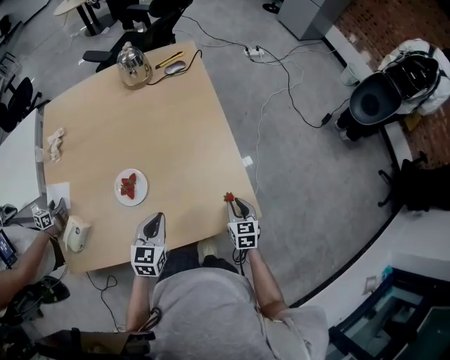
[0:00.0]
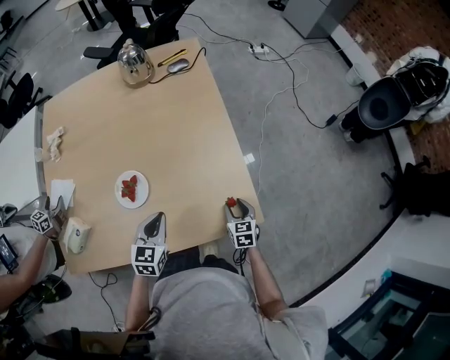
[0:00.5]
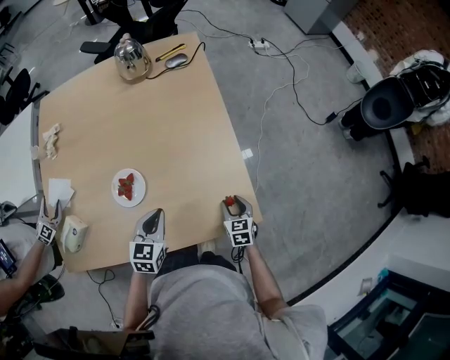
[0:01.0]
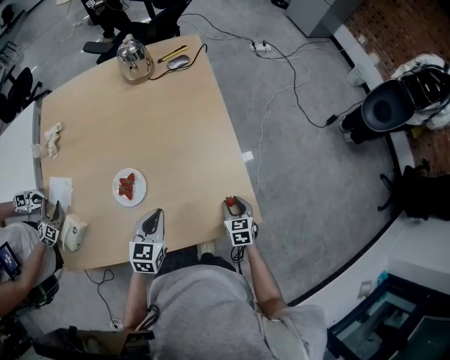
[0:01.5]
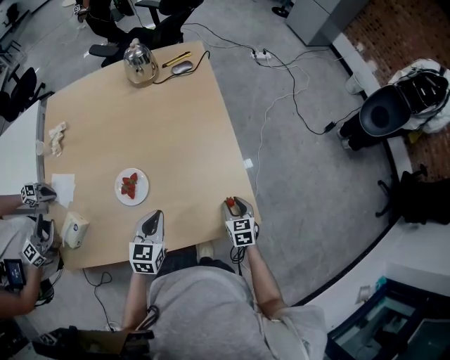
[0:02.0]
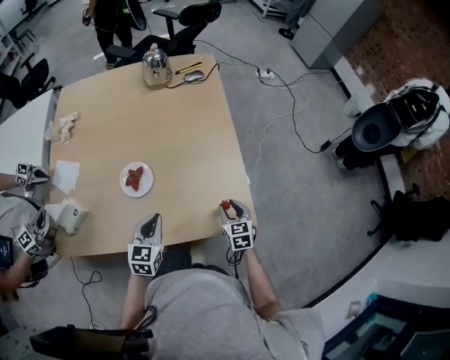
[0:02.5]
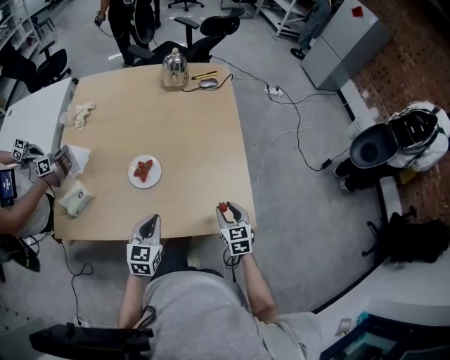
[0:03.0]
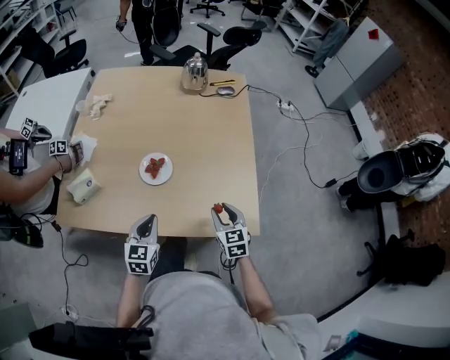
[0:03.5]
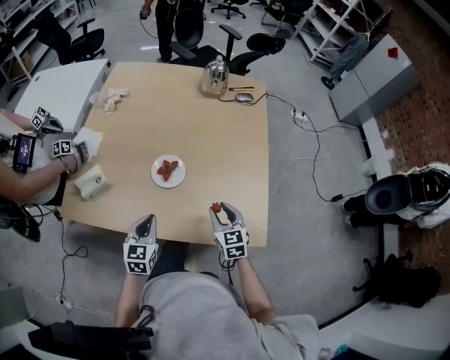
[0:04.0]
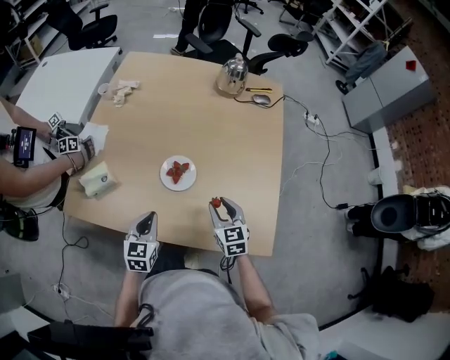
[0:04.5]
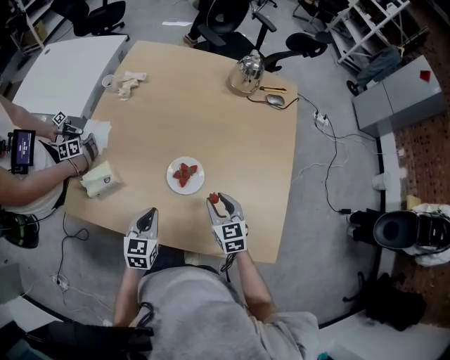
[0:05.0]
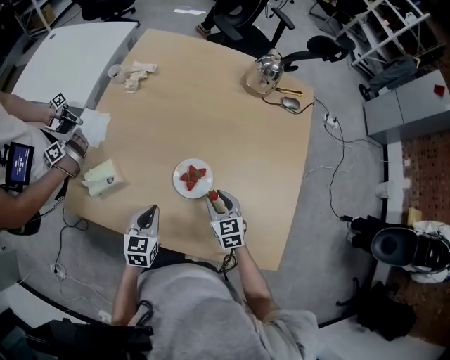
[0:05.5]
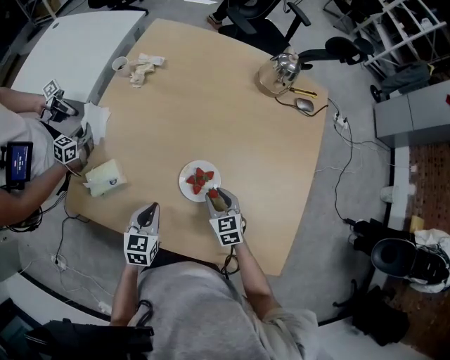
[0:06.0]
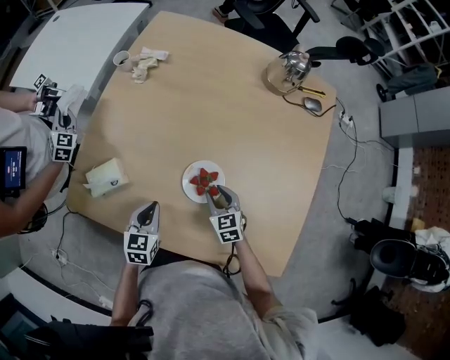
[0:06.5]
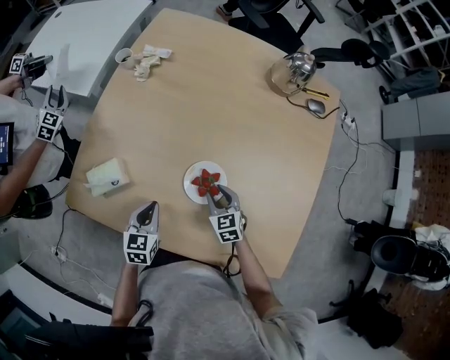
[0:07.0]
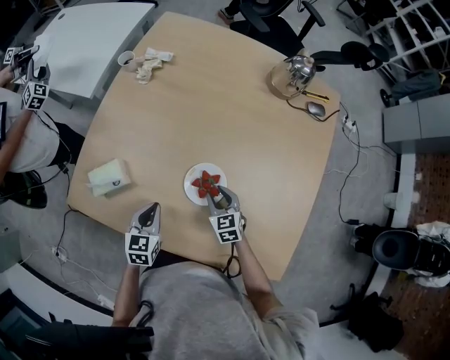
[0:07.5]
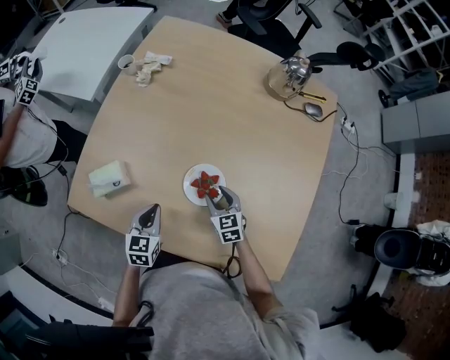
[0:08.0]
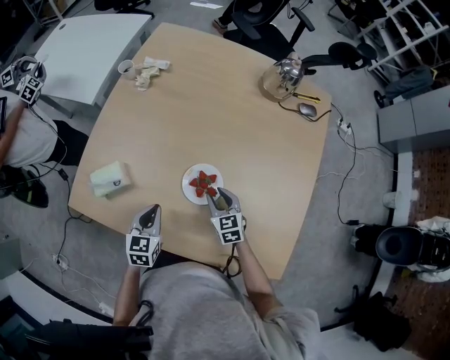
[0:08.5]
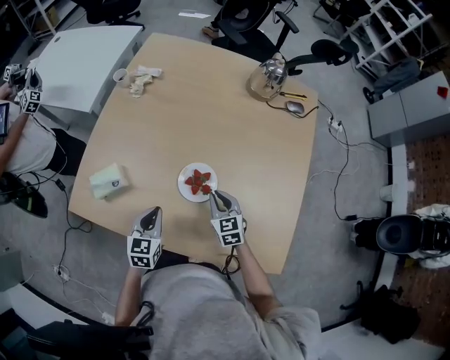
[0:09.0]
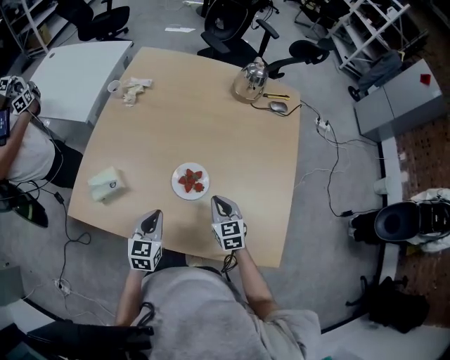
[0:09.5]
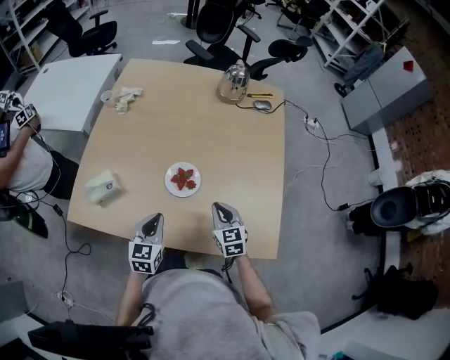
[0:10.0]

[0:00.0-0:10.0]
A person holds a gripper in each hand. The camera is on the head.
0:00.0 to 0:02.0: There are only small adjustments of the grippers.
0:02.0 to 0:04.0: The left gripper moves to the left and backward, approximately 15 cm, and swivels roughly 20 degrees. Meanwhile the right gripper is displaced to the left and upward by roughly 20 cm, and rotates approximately 30 degrees.
0:04.0 to 0:06.0: The grippers both shift forward, to the left and downward by roughly 20 cm.
0:06.0 to 0:08.0: The grippers stay close to where they were, moving slightly.
0:08.0 to 0:10.0: The two grippers go some 15 cm backward, upward and to the right. The right gripper closes its fingers.

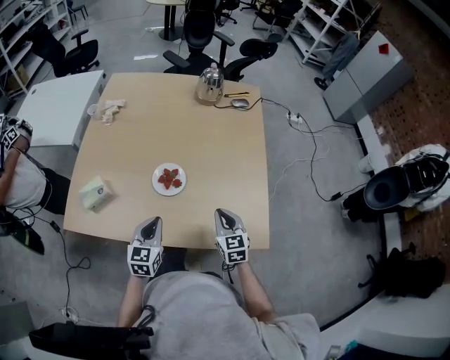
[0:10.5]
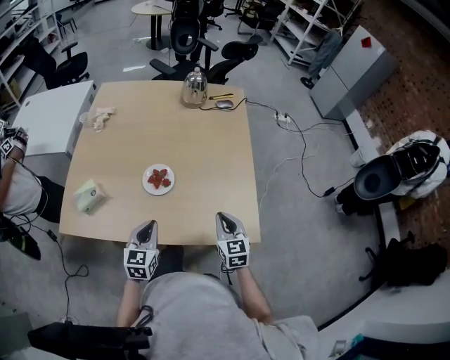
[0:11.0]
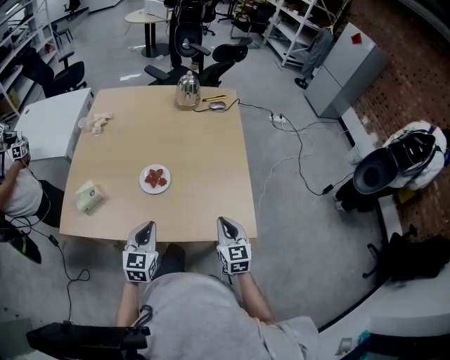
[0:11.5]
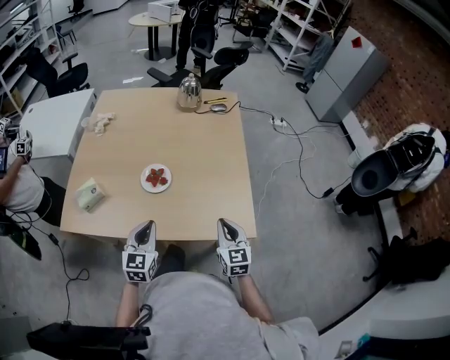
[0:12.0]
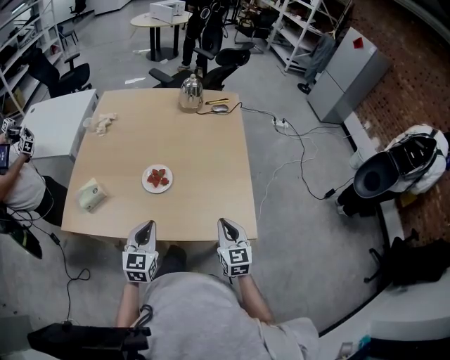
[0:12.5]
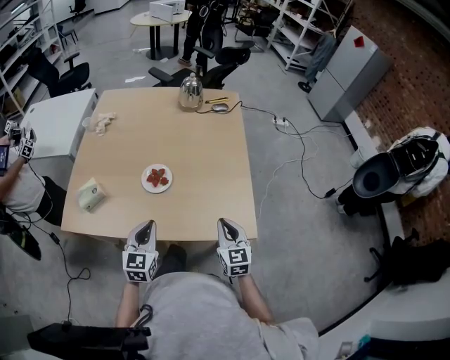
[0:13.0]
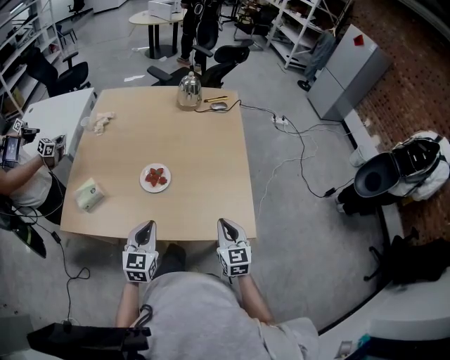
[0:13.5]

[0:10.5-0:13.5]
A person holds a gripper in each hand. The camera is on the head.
0:10.5 to 0:12.0: The right gripper shifts some 10 cm backward and to the right. The left gripper goes some 5 cm backward.
0:12.0 to 0:13.5: The two grippers keep their place.

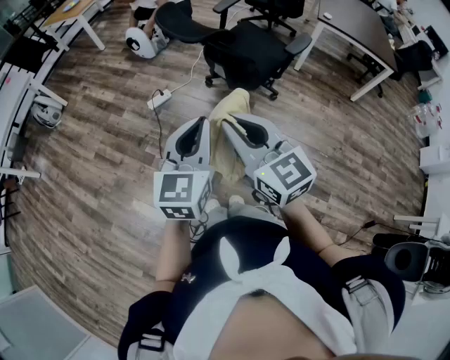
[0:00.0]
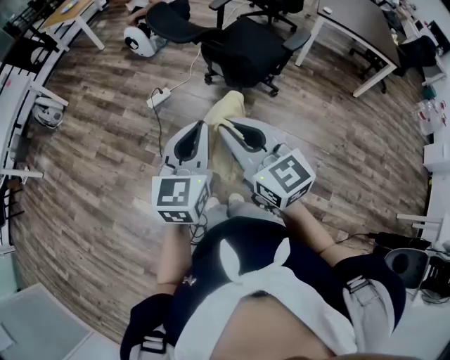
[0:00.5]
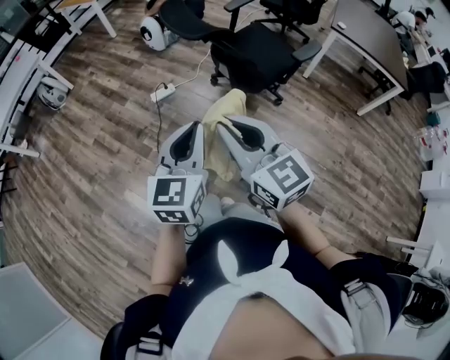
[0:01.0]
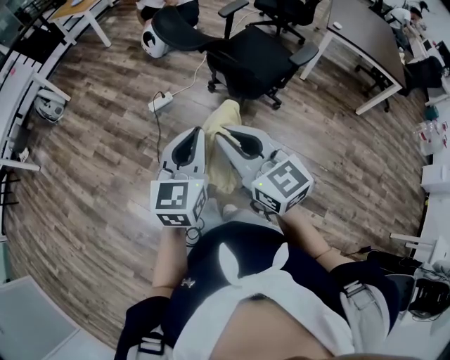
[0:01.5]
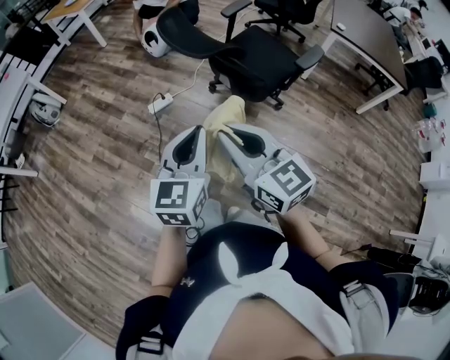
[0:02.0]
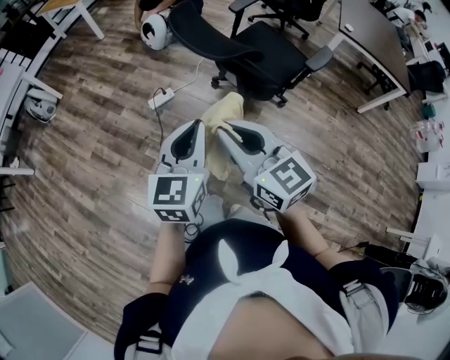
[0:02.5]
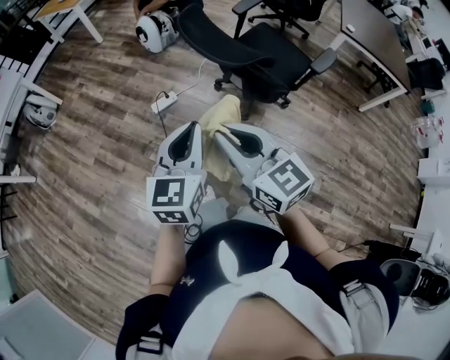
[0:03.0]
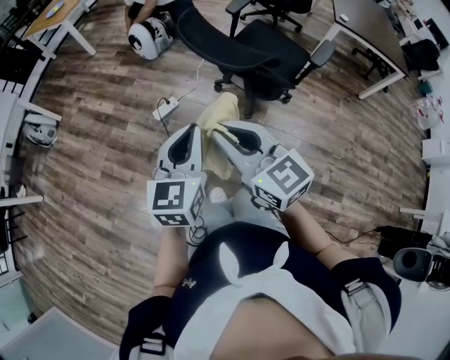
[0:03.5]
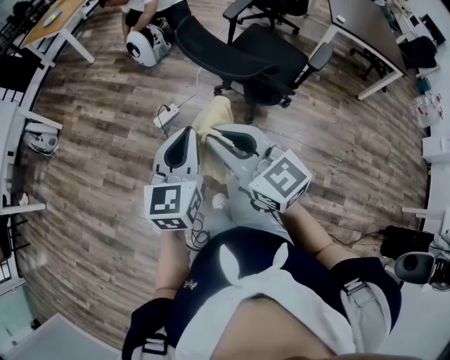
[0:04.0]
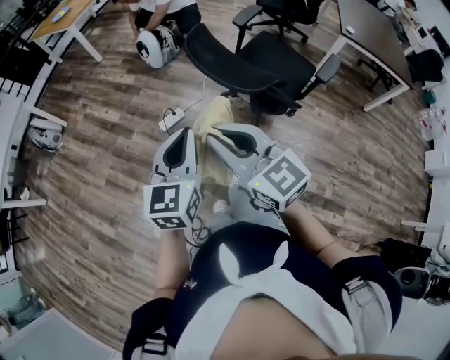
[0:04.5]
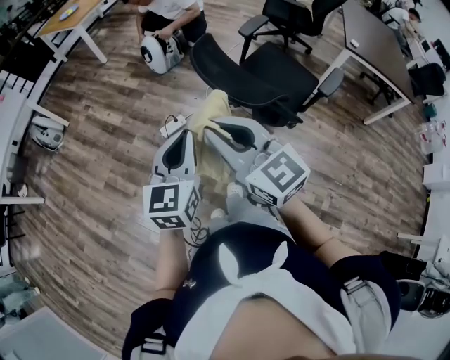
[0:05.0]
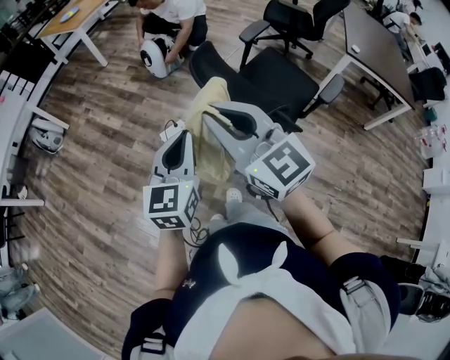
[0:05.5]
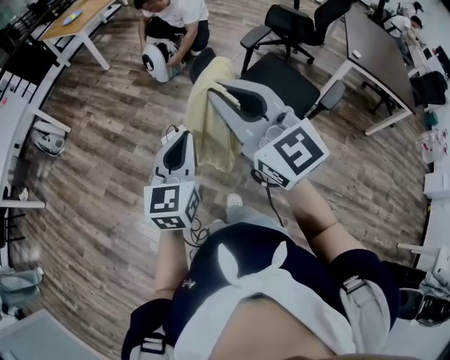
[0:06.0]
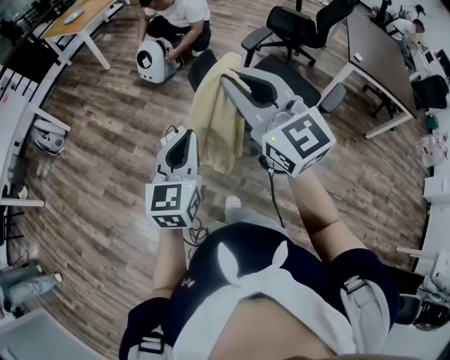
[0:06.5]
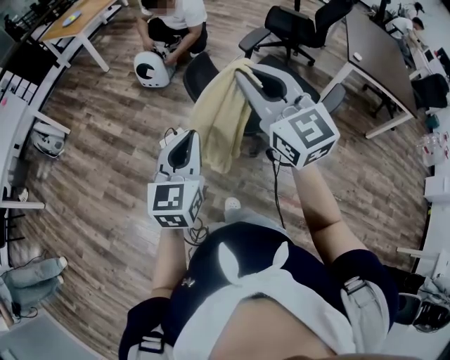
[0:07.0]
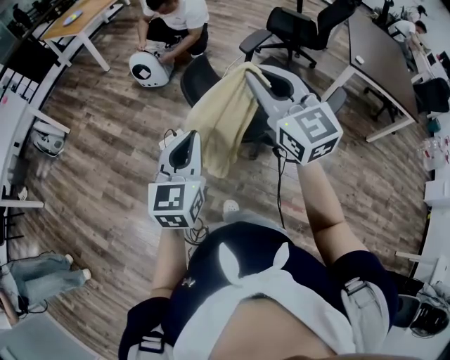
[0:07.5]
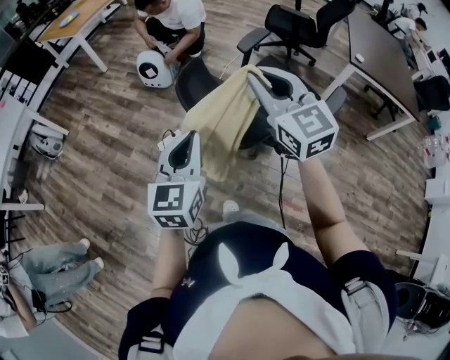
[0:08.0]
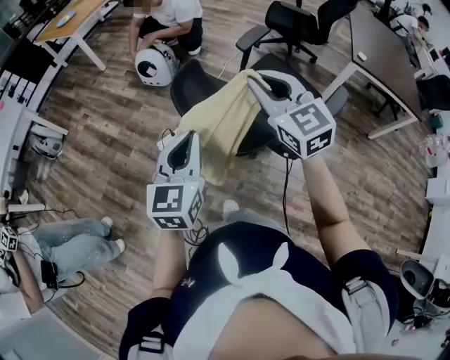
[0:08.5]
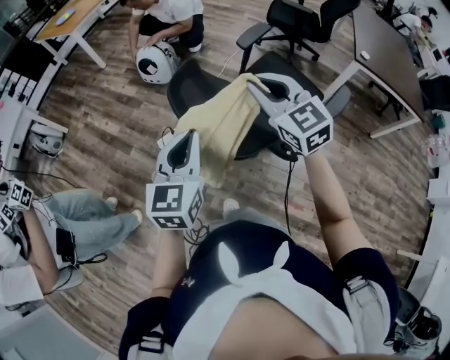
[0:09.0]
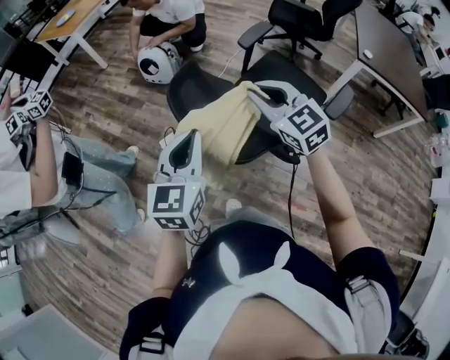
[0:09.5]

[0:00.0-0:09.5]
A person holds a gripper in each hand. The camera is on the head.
0:00.0 to 0:02.0: The two grippers go some 10 cm forward.
0:02.0 to 0:04.0: Both grippers move forward and to the left, approximately 20 cm.
0:04.0 to 0:05.5: The left gripper is displaced forward by some 10 cm. Meanwhile the right gripper heads forward and upward, covering approximately 15 cm.
0:05.5 to 0:07.5: The right gripper goes some 20 cm to the right and forward. Meanwhile the left gripper travels to the right and forward by about 10 cm.
0:07.5 to 0:09.5: The left gripper moves forward and to the right, approximately 10 cm. The right gripper moves downward, forward and to the right, roughly 20 cm.

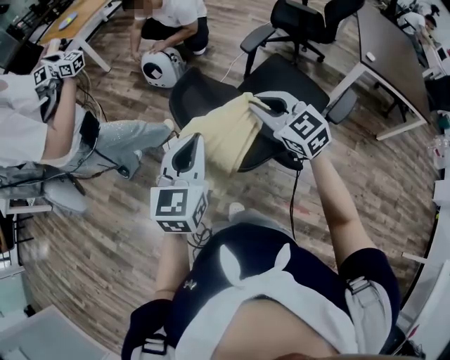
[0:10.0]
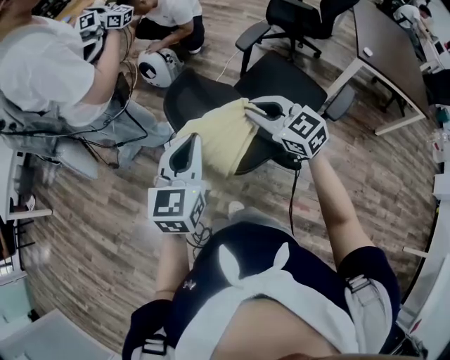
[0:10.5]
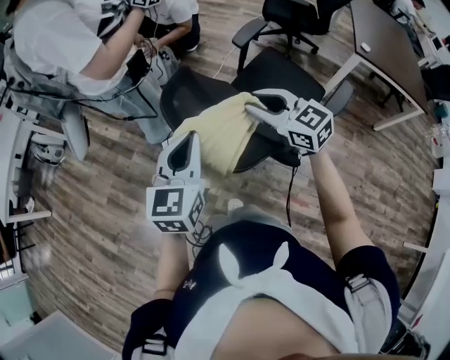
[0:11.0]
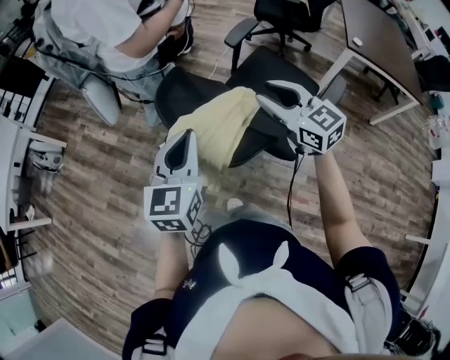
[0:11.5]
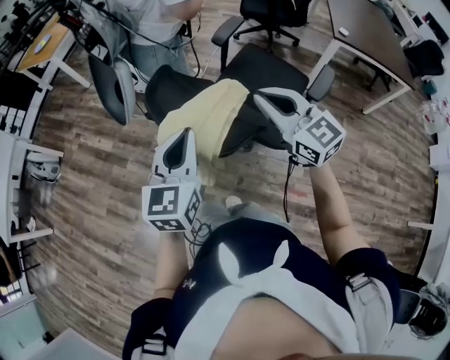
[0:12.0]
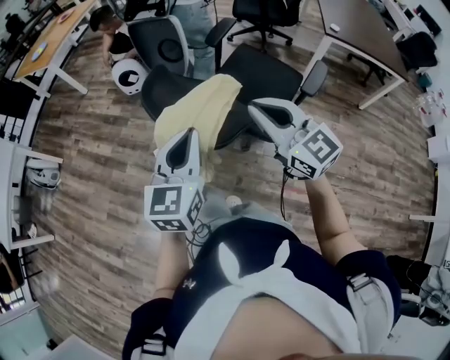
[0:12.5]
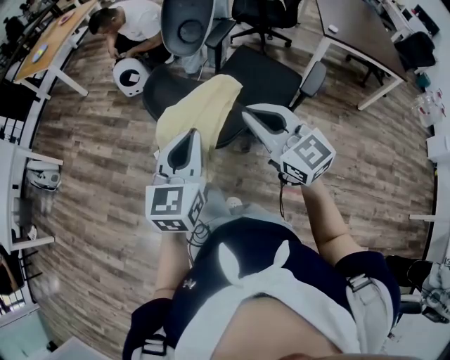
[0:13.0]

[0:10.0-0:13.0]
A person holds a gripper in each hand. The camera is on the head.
0:10.0 to 0:11.5: The right gripper is displaced to the right by some 5 cm, and opens its fingers.
0:11.5 to 0:13.0: The right gripper travels backward by some 10 cm, and closes its fingers. Meanwhile the left gripper moves backward, some 5 cm.
